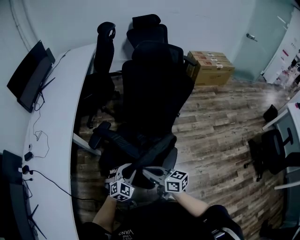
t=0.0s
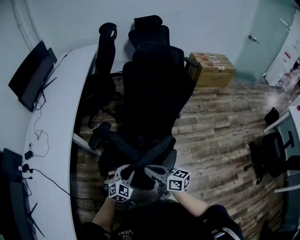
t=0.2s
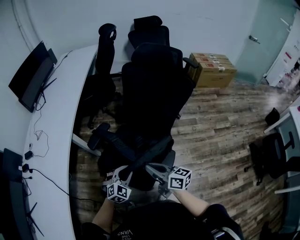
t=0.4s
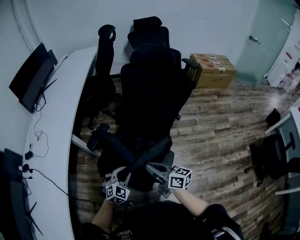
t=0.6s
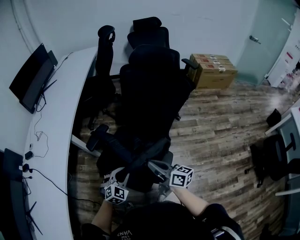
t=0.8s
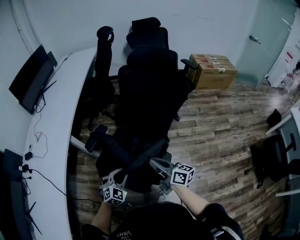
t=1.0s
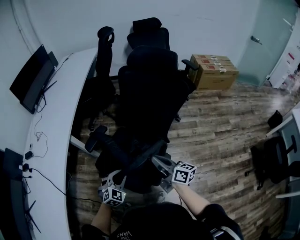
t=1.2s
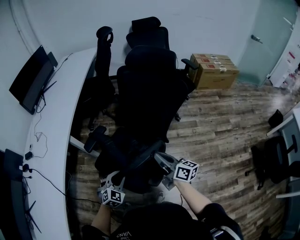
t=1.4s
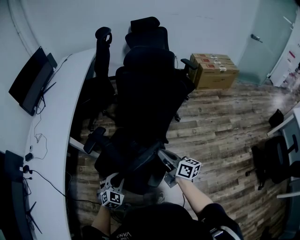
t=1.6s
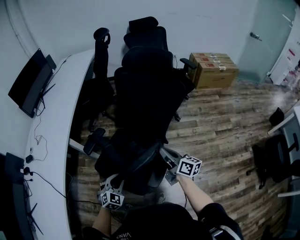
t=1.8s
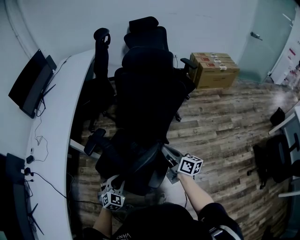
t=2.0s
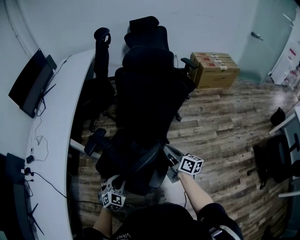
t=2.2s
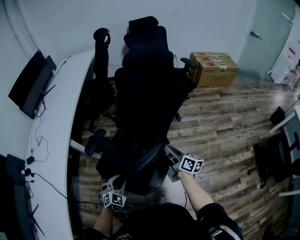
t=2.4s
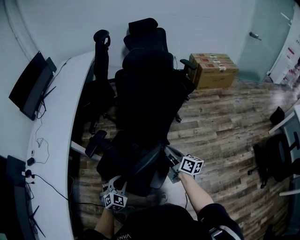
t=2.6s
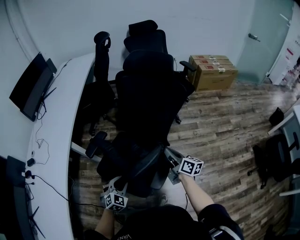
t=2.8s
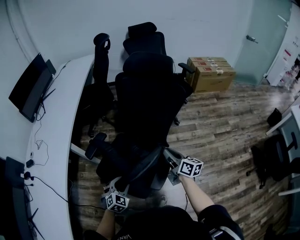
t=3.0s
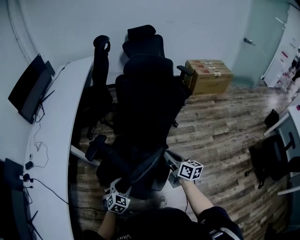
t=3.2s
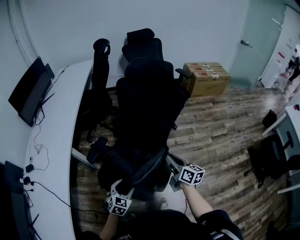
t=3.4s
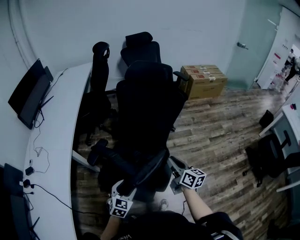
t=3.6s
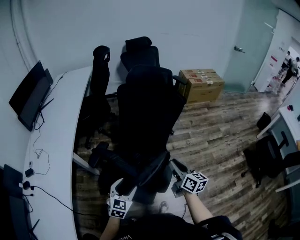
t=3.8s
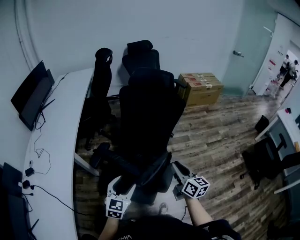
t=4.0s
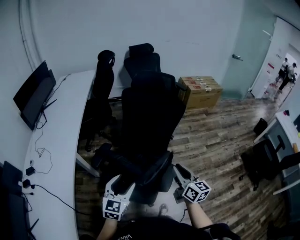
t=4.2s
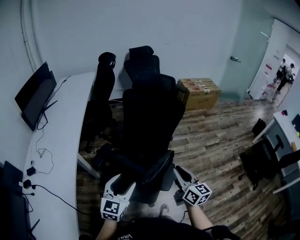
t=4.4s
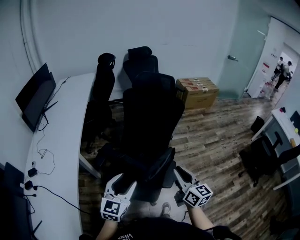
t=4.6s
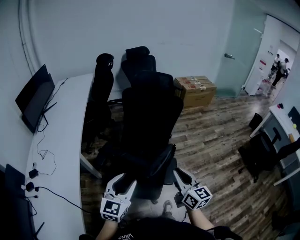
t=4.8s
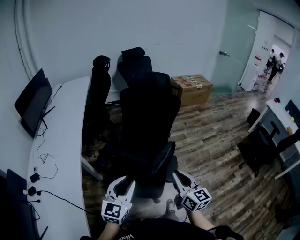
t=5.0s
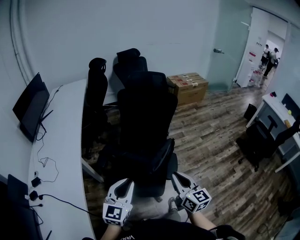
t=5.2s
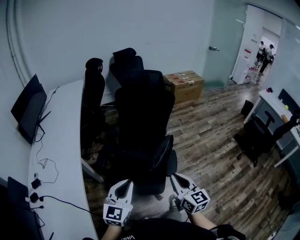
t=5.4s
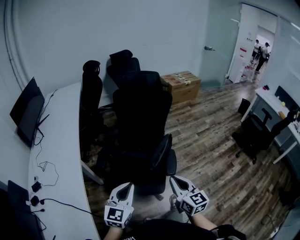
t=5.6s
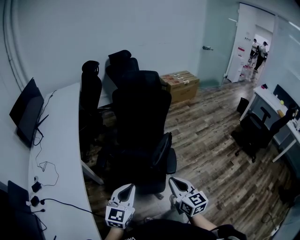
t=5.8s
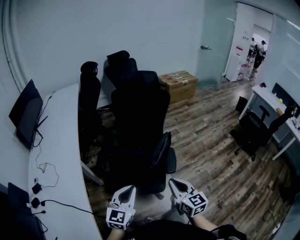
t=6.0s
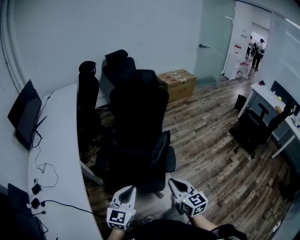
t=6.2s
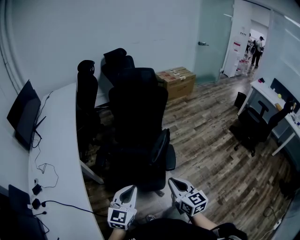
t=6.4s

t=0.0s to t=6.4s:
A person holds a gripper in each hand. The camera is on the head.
t=0.0s to t=1.6s: The right gripper is displaced to the right by some 20 cm.
t=1.6s to t=3.2s: The left gripper opens its fingers.
t=3.2s to t=4.8s: The right gripper moves backward, upward and to the left, approximately 30 cm, and swivels about 30 degrees. Meanwhile the left gripper shifts approximately 25 cm upward, and angles its fingers upward, by about 40 degrees.
t=4.8s to t=6.4s: The grippers both shift backward by some 15 cm. The left gripper closes.

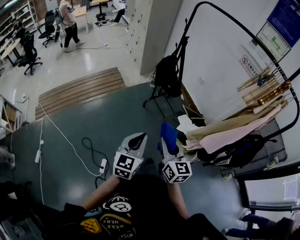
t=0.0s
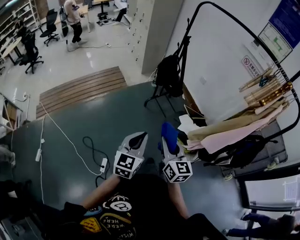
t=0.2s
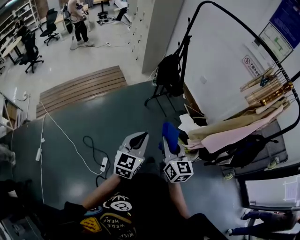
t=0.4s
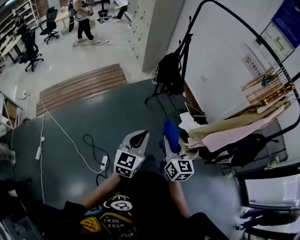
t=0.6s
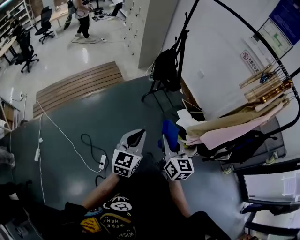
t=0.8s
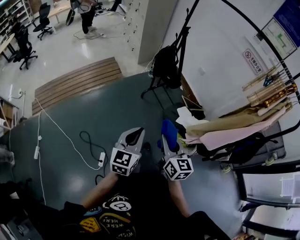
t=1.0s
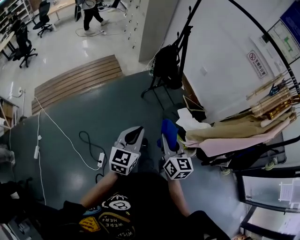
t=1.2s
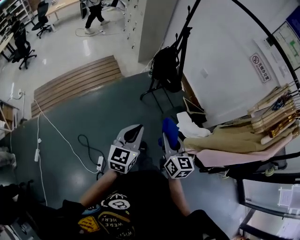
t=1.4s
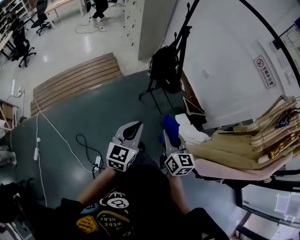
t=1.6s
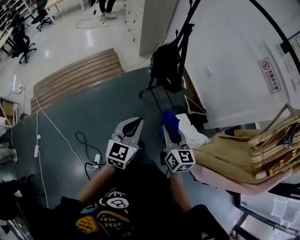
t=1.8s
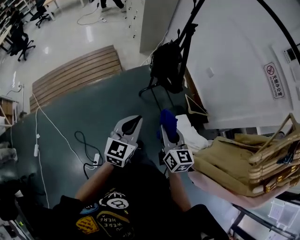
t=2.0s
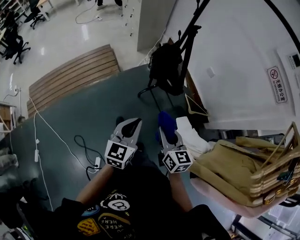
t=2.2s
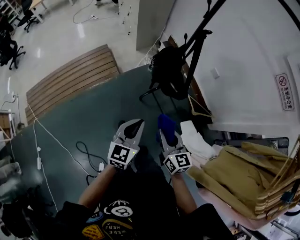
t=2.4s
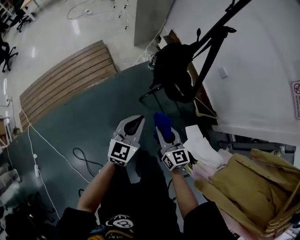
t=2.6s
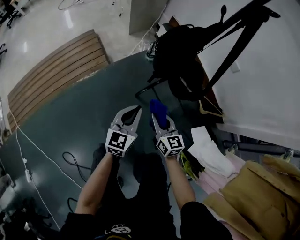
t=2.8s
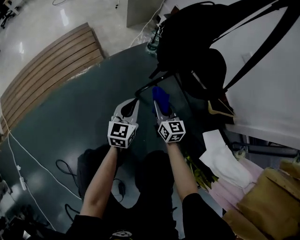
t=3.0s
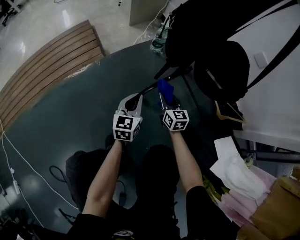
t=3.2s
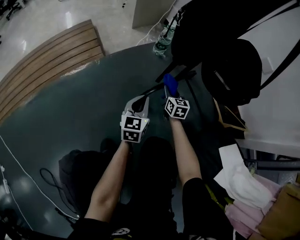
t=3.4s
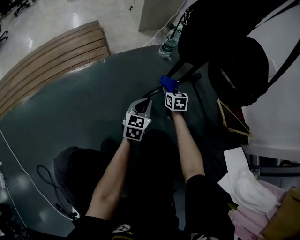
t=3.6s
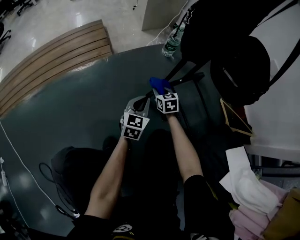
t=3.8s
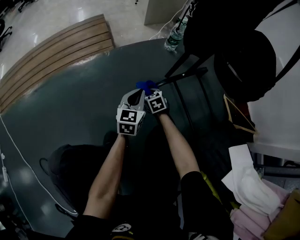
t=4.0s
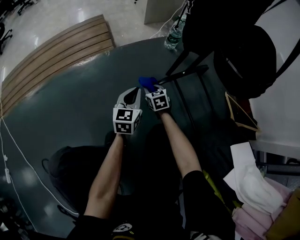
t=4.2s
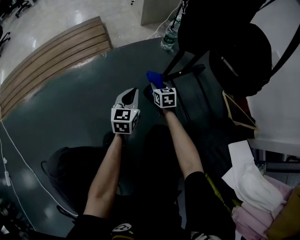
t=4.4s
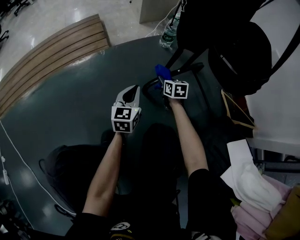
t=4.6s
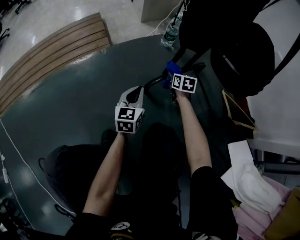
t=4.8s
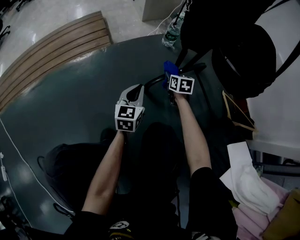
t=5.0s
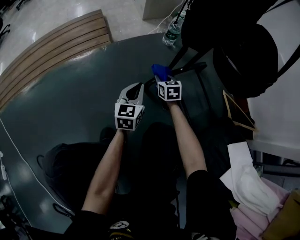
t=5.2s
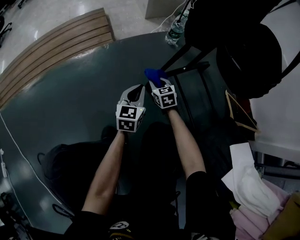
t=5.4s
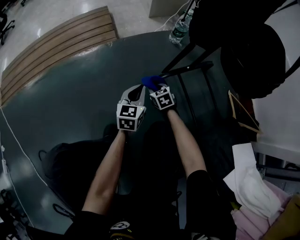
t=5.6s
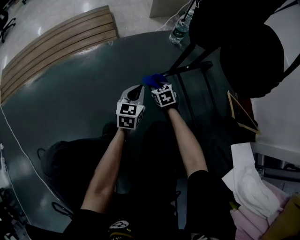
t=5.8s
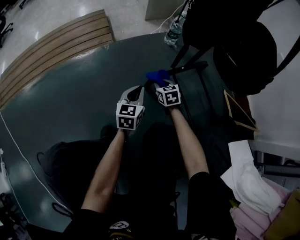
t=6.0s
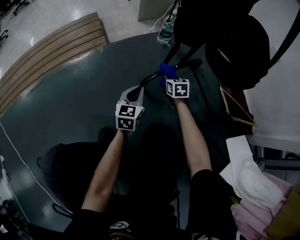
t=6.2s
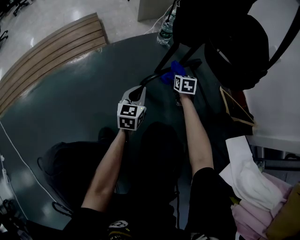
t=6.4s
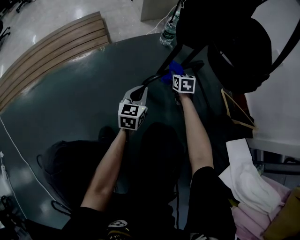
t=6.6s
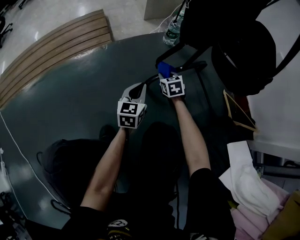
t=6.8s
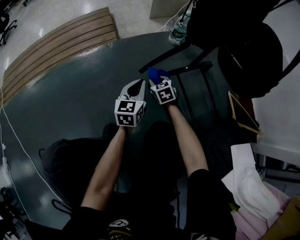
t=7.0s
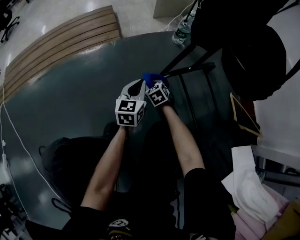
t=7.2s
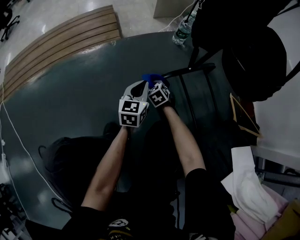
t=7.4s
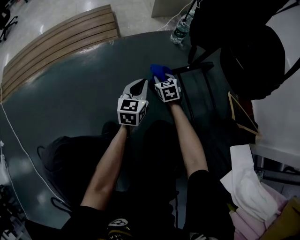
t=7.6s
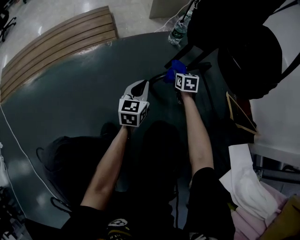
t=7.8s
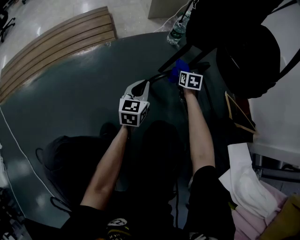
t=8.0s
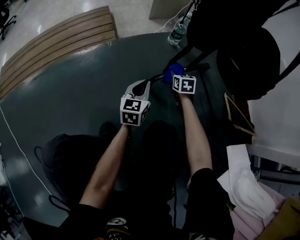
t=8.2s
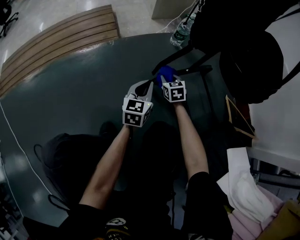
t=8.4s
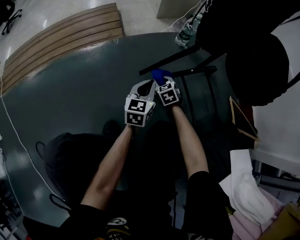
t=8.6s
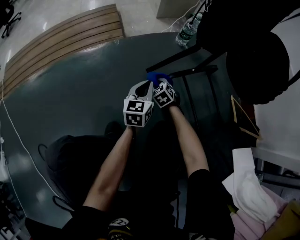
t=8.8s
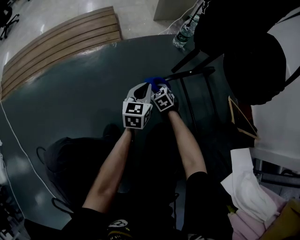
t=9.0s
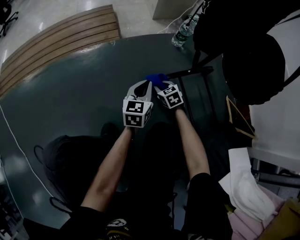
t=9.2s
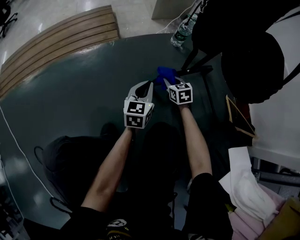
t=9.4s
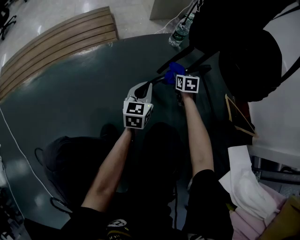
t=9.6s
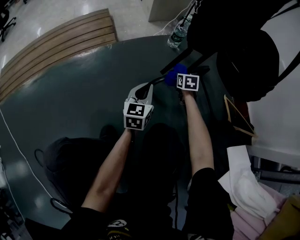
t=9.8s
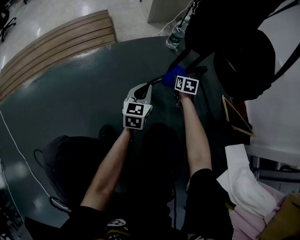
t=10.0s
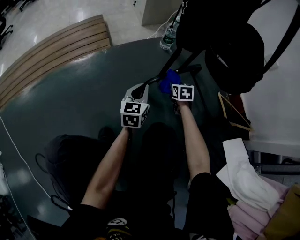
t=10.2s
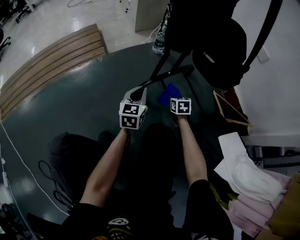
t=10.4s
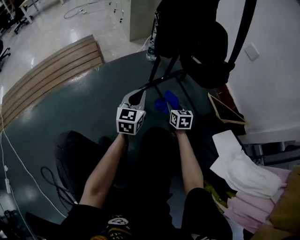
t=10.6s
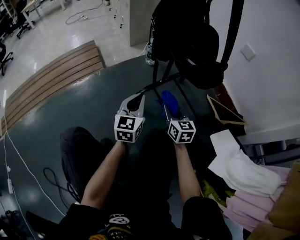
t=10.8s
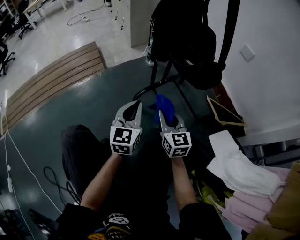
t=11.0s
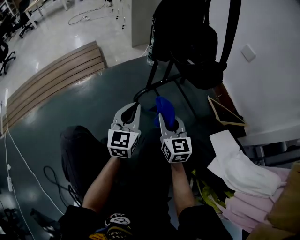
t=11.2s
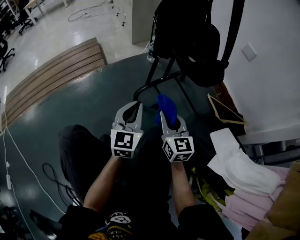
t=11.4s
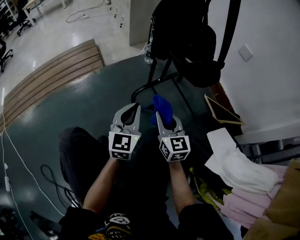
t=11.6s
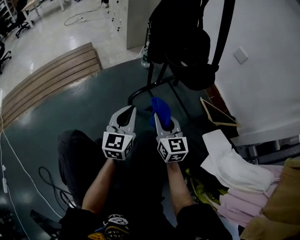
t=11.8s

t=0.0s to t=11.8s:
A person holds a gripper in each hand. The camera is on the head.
t=0.0s to t=1.4s: Both grippers travel together forward, approximately 15 cm.
t=1.4s to t=3.0s: Both grippers are carried forward, roughly 50 cm. Both grippers move downward, approximately 60 cm.
t=3.0s to t=4.4s: Both grippers move downward, approximately 25 cm. The right gripper rotates about 20 degrees.
t=4.4s to t=6.0s: The right gripper goes left and right, approximately 15 cm each way, reversing 2 times.
t=6.0s to t=7.4s: The right gripper shifts some 10 cm to the left, and turns by about 20 degrees.
t=7.4s to t=8.8s: The right gripper travels to the right and back again, about 20 cm each way.
t=8.8s to t=10.4s: The right gripper heads to the right, covering roughly 20 cm, and twists approximately 40 degrees clockwise, seen from behind; the left gripper travels to the right and upward by some 10 cm.
t=10.4s to t=11.8s: The left gripper goes roughly 20 cm upward and backward. The right gripper moves upward and backward, roughly 30 cm, and tips its fingers upward by some 40 degrees.

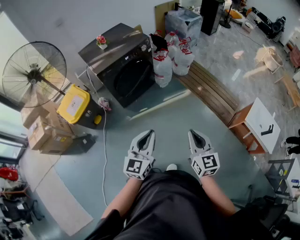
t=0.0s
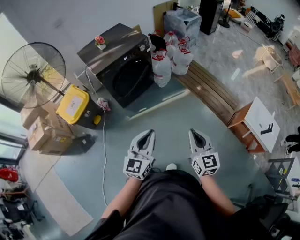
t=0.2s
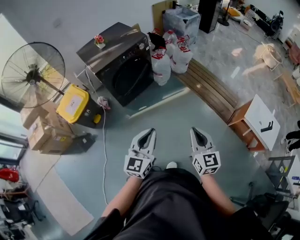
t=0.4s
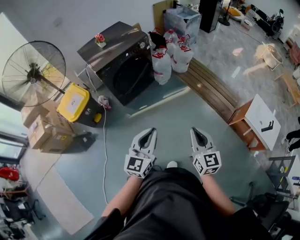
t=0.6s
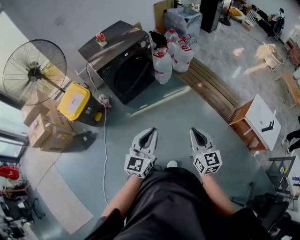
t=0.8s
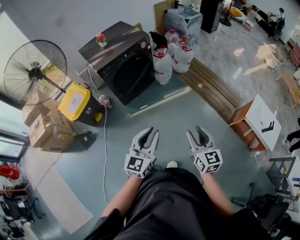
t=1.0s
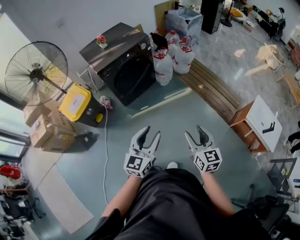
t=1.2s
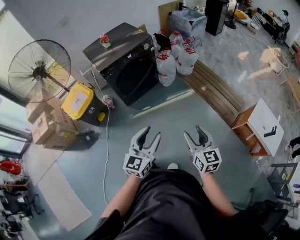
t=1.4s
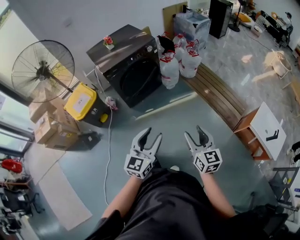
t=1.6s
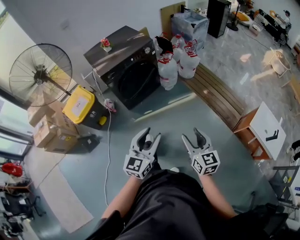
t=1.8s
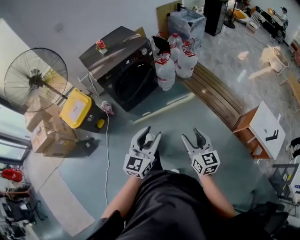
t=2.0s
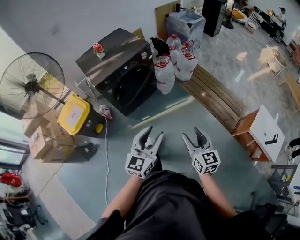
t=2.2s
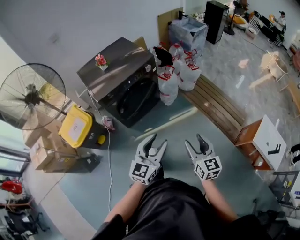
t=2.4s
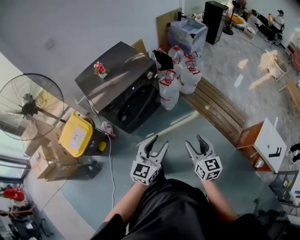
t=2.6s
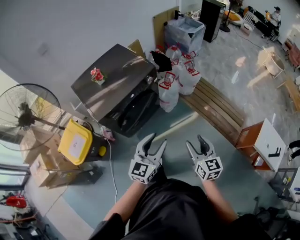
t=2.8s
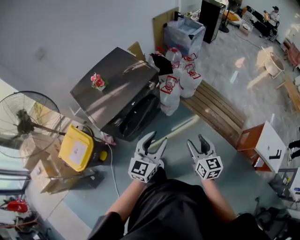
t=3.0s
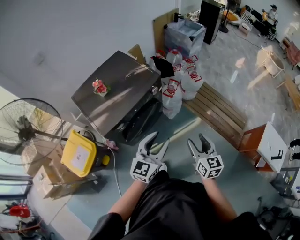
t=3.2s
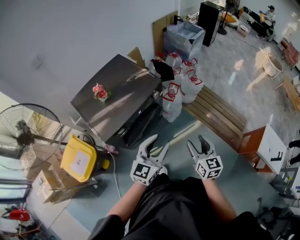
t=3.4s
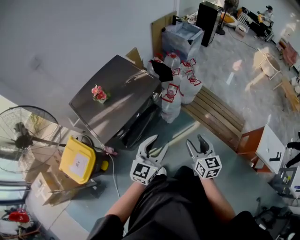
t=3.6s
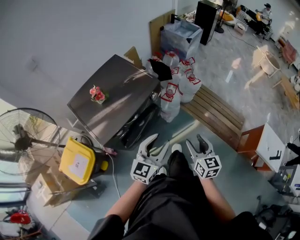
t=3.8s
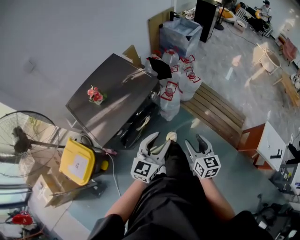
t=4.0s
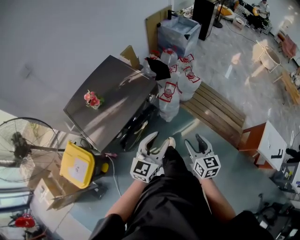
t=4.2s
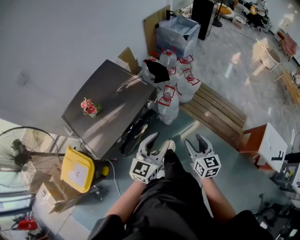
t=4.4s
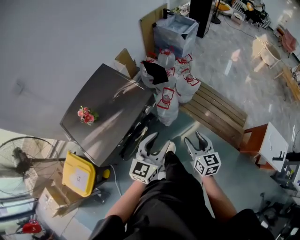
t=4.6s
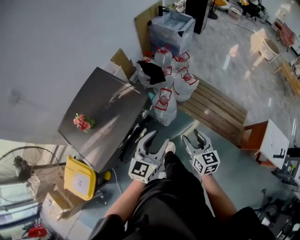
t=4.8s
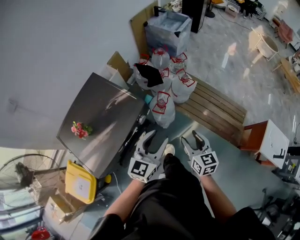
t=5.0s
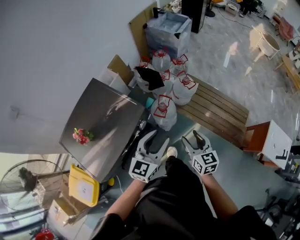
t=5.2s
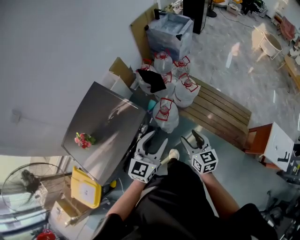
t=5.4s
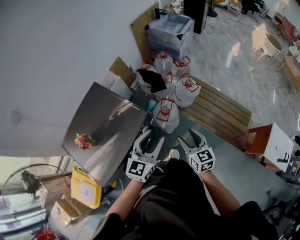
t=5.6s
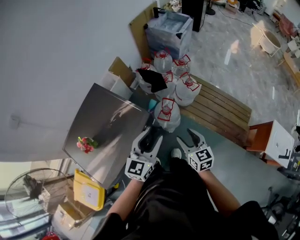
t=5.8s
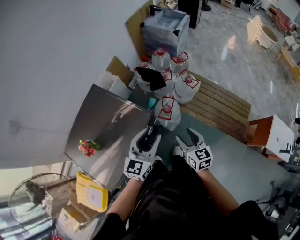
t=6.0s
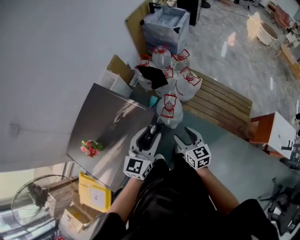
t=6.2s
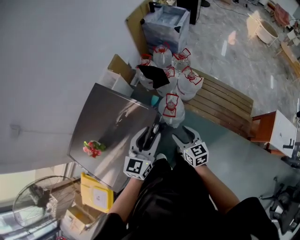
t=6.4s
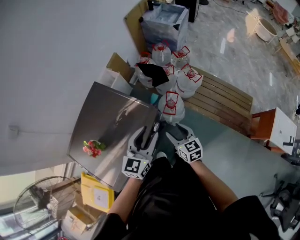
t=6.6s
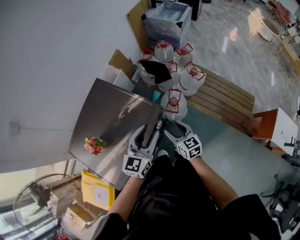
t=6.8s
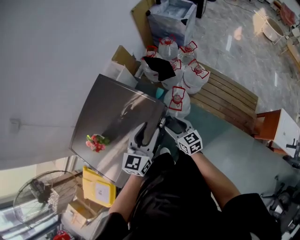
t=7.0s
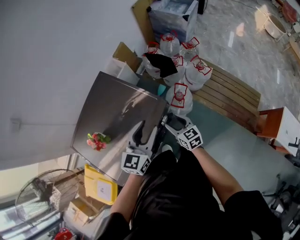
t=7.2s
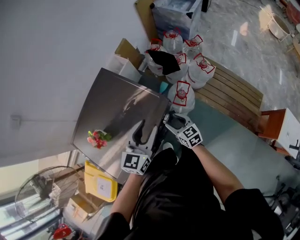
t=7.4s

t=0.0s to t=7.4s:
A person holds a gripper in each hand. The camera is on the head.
t=0.0s to t=1.4s: The right gripper opens up, while the left gripper opens.
t=1.4s to t=3.0s: Both grippers travel together forward, roughly 40 cm.
t=3.0s to t=4.4s: The two grippers go approximately 15 cm forward.
t=4.4s to t=6.0s: The grippers both shift forward by some 20 cm.
t=6.0s to t=7.4s: The right gripper travels to the left and downward by roughly 20 cm, and turns by some 20 degrees. Meanwhile the left gripper shifts about 10 cm to the left.
